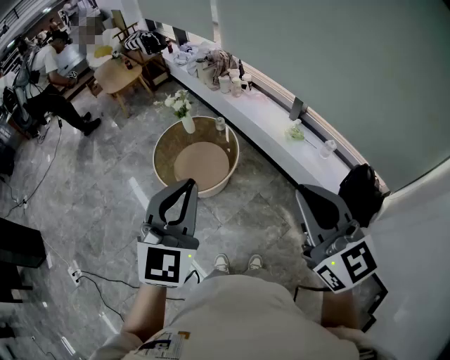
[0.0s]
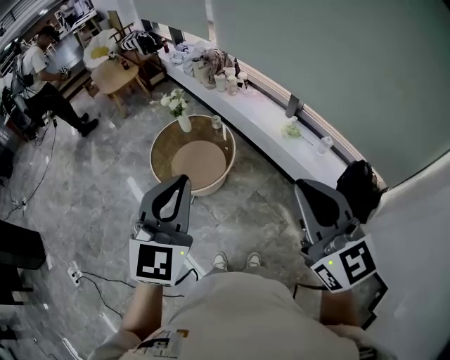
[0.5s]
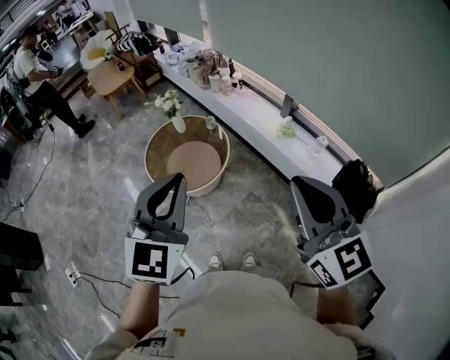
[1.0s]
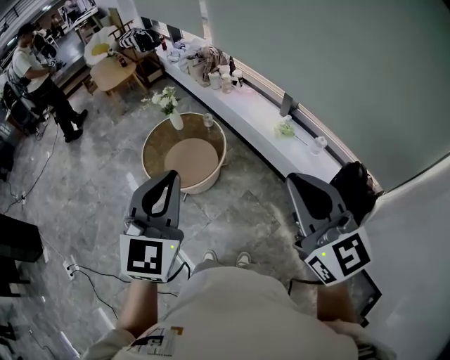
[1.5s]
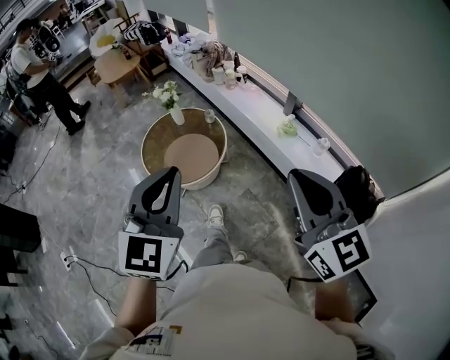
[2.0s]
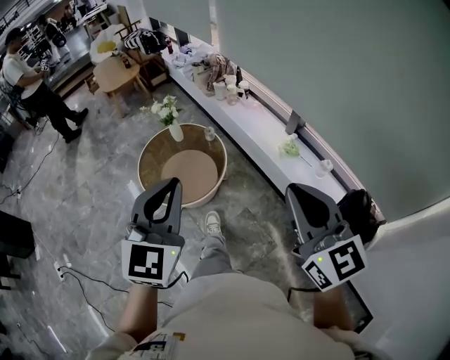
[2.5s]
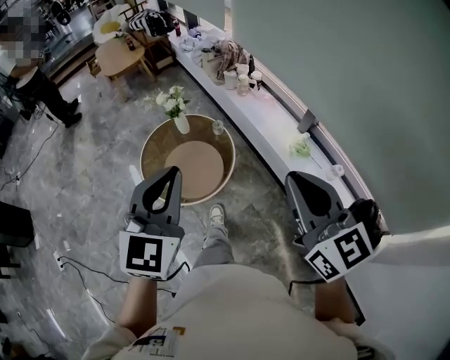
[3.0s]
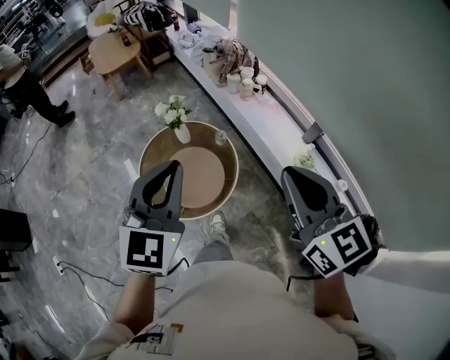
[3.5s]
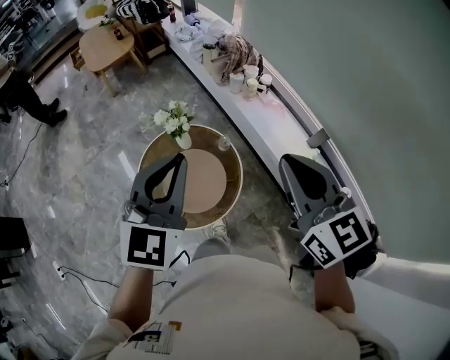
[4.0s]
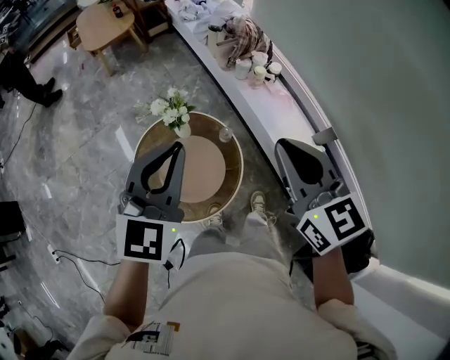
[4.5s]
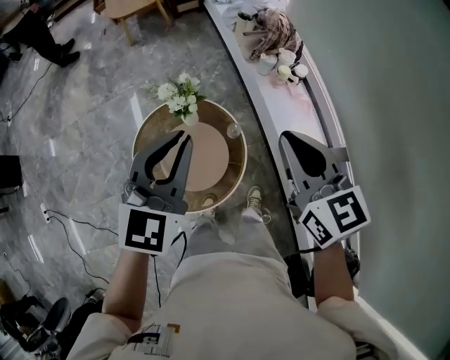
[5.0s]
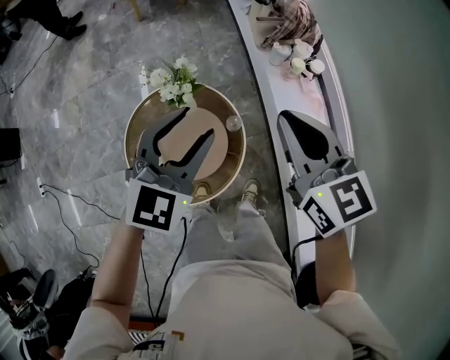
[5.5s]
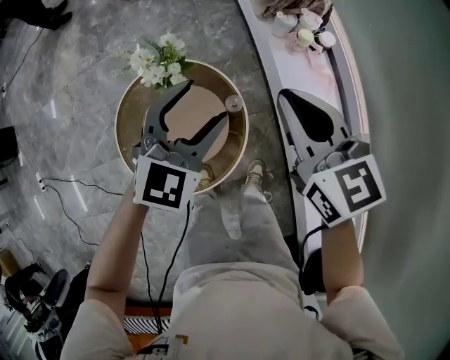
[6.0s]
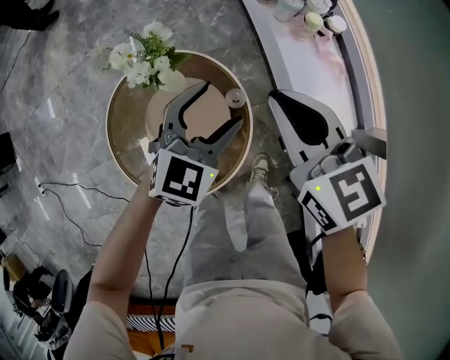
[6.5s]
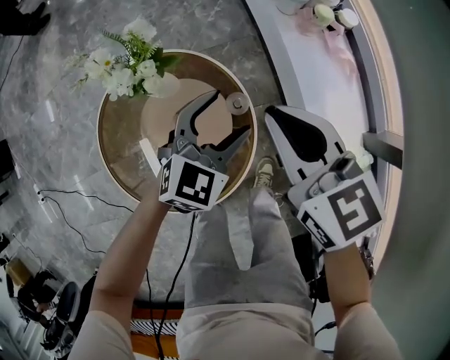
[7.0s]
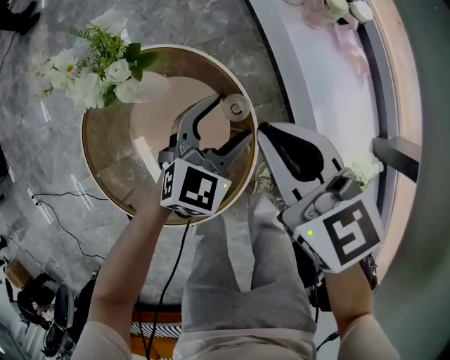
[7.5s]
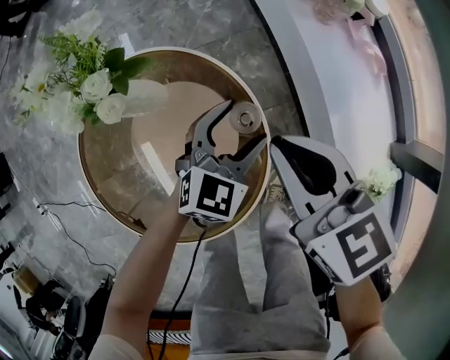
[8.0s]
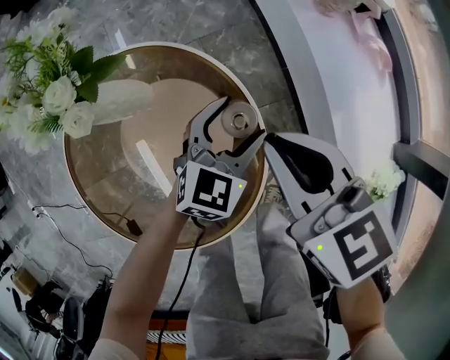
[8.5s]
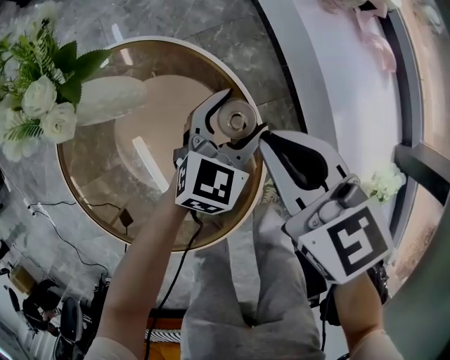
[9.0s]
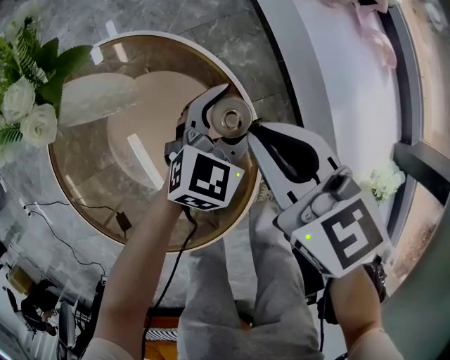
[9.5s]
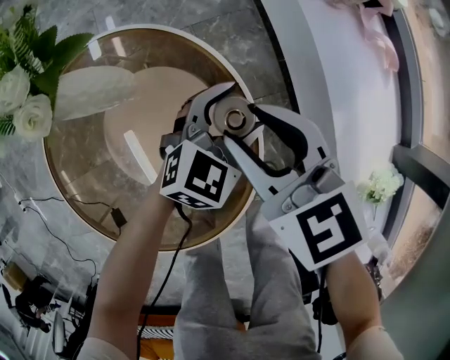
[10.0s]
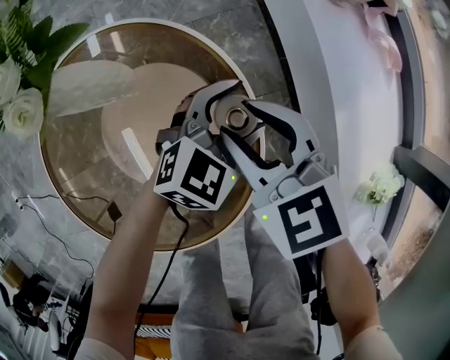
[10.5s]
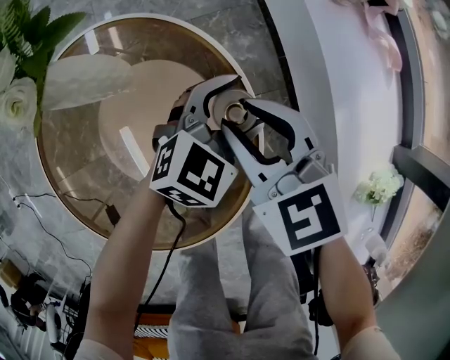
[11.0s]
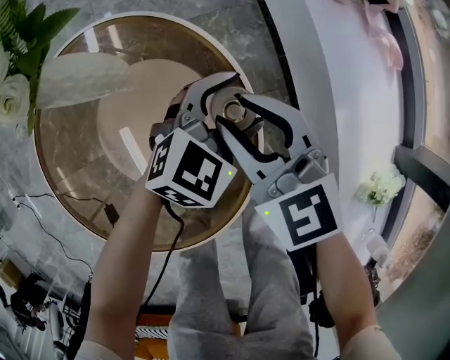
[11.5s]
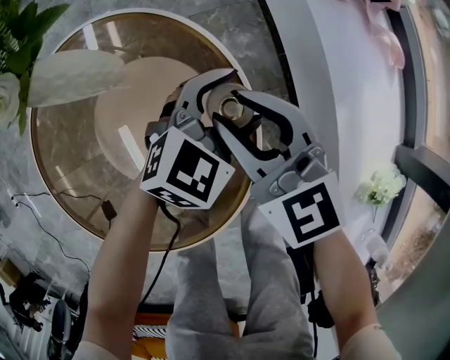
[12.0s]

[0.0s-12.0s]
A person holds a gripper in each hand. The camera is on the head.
0.0s to 2.0s: Both grippers move to the right, approximately 10 cm.
2.0s to 4.0s: The pair of grippers is taken forward, about 50 cm.
4.0s to 6.0s: The left gripper shifts approximately 35 cm downward, forward and to the right, and opens up, while the right gripper is displaced forward and downward by about 35 cm, and turns by some 20 degrees.
6.0s to 8.0s: The two grippers go some 35 cm downward.
8.0s to 10.0s: Both grippers move downward, some 10 cm. The right gripper opens.
10.0s to 12.0s: The grippers stay close to where they were, moving slightly.

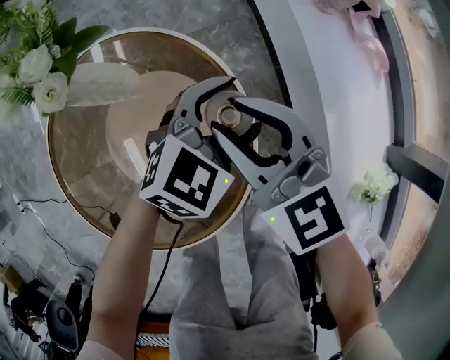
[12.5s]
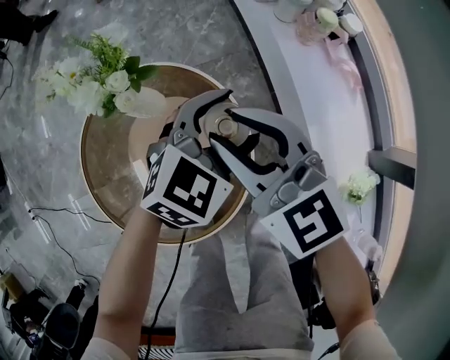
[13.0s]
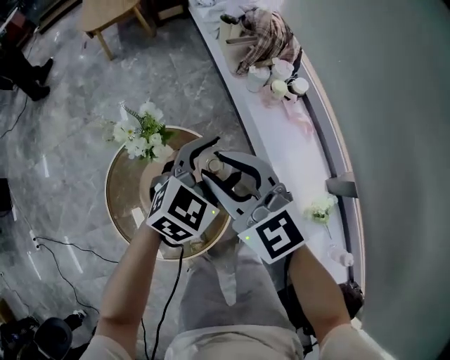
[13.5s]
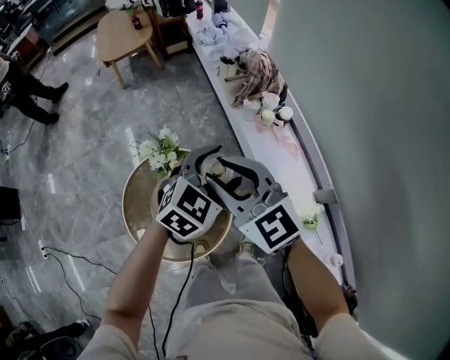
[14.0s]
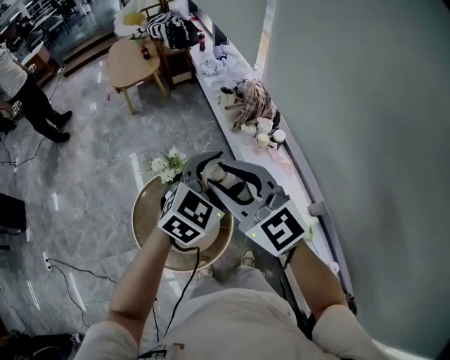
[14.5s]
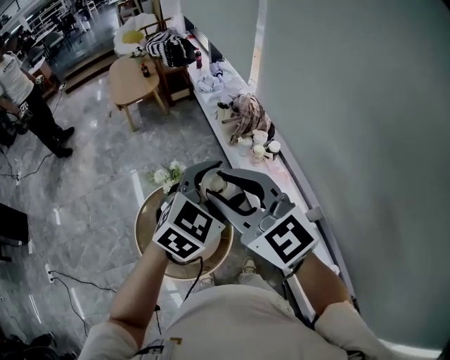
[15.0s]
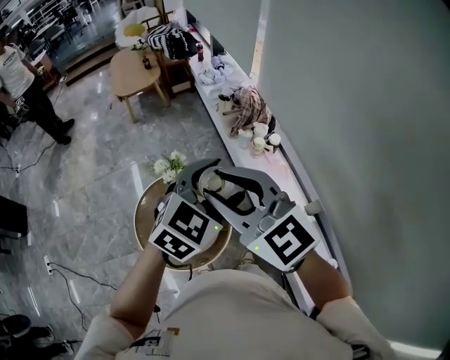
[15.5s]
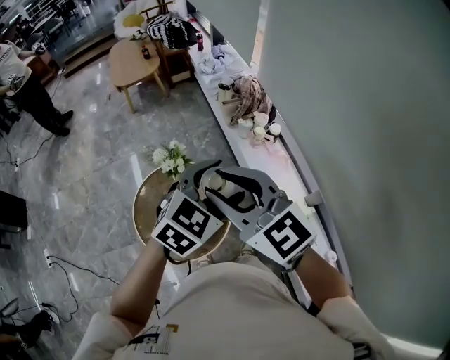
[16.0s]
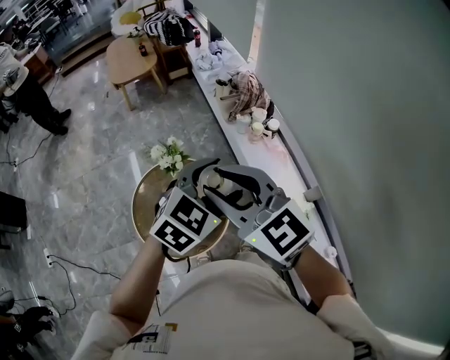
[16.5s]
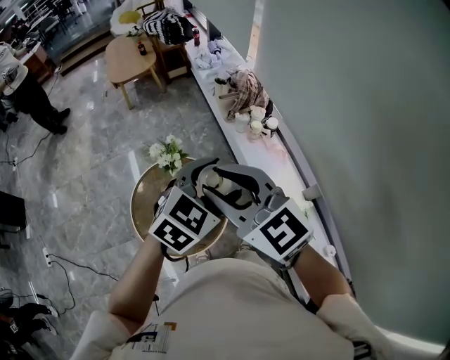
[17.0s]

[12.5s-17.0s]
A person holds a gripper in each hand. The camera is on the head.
12.5s to 14.5s: Both grippers move upward, approximately 60 cm. The right gripper turns by some 20 degrees.
14.5s to 17.0s: The two grippers go approximately 10 cm backward.

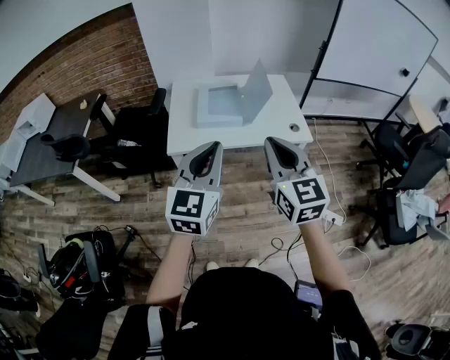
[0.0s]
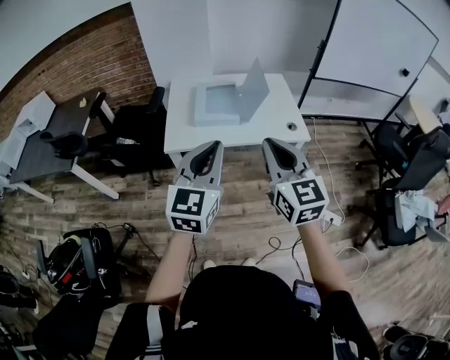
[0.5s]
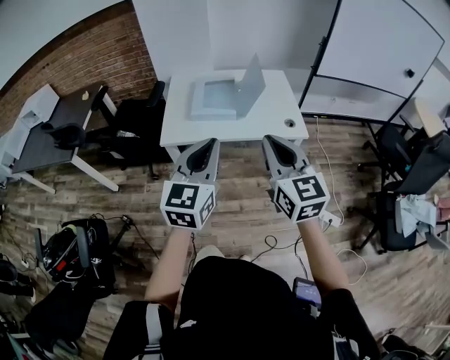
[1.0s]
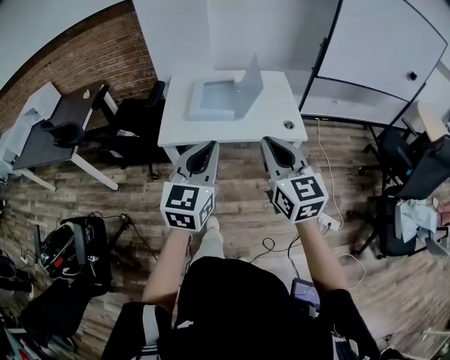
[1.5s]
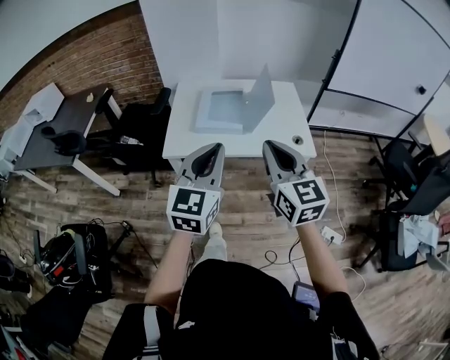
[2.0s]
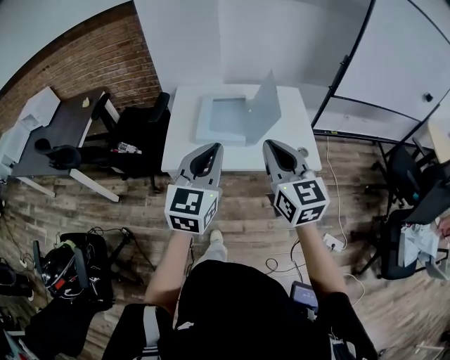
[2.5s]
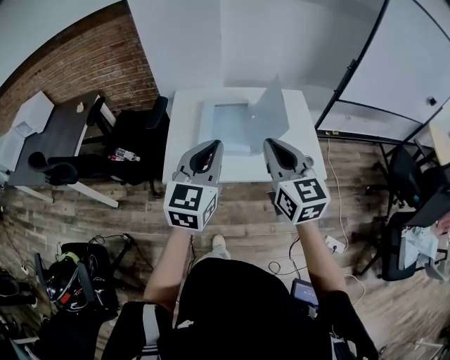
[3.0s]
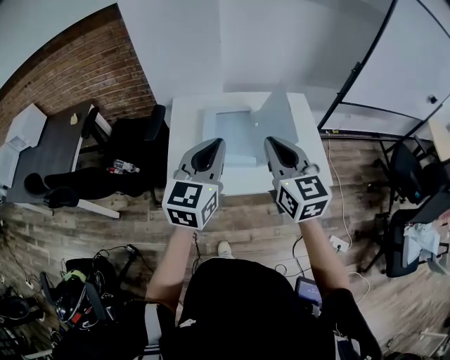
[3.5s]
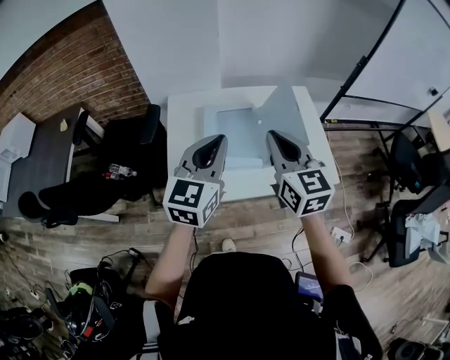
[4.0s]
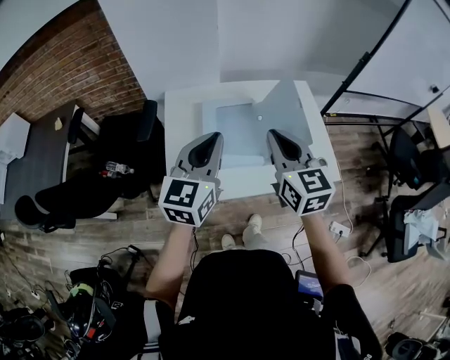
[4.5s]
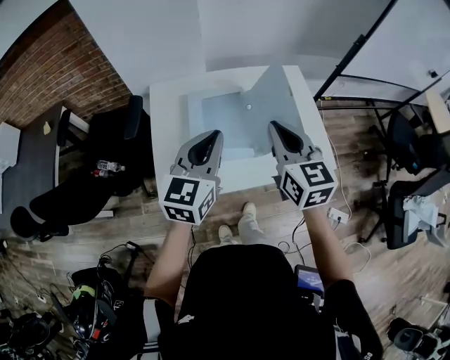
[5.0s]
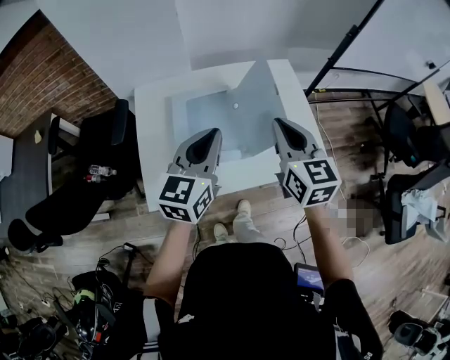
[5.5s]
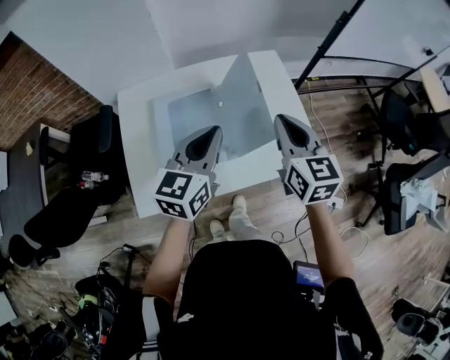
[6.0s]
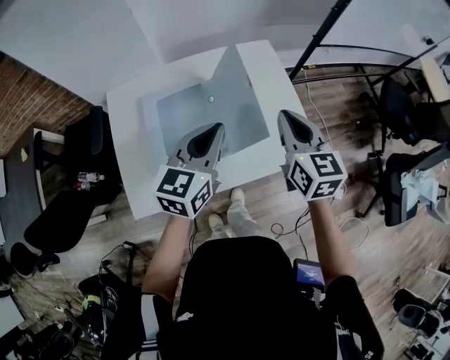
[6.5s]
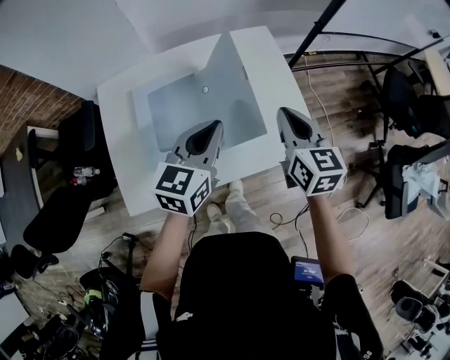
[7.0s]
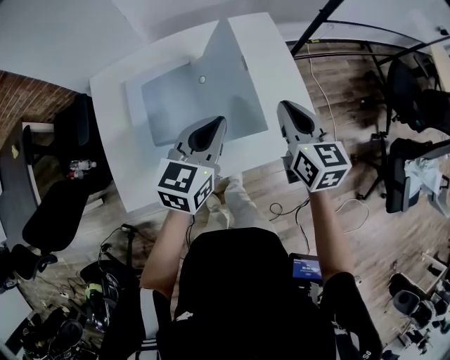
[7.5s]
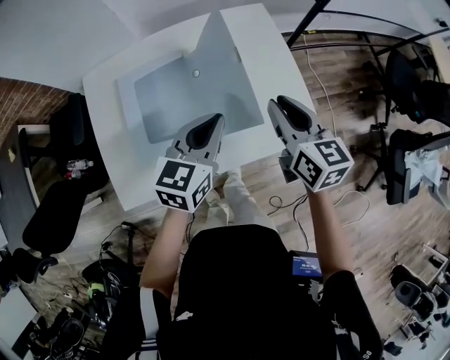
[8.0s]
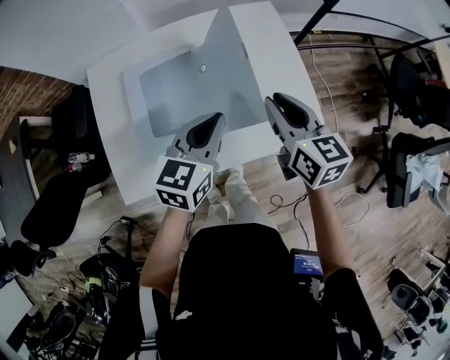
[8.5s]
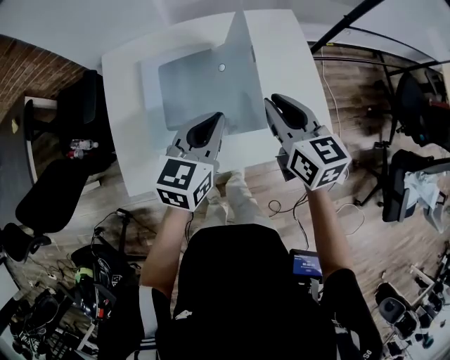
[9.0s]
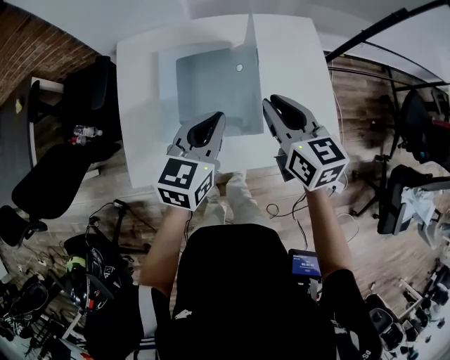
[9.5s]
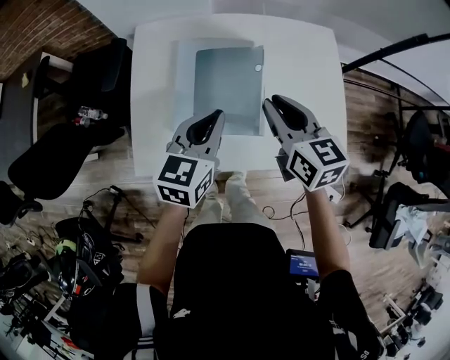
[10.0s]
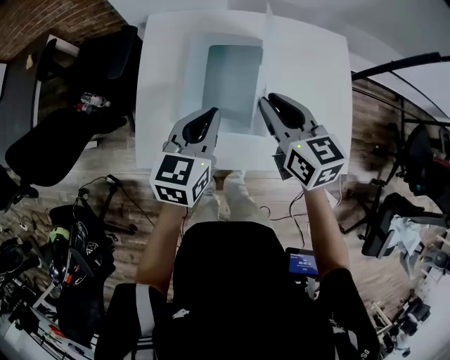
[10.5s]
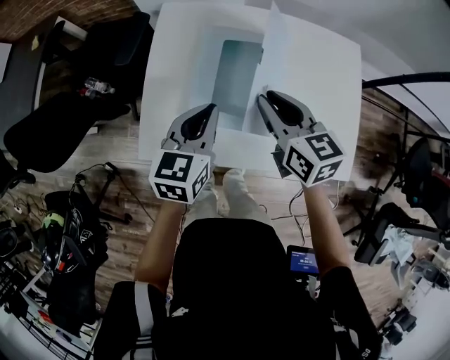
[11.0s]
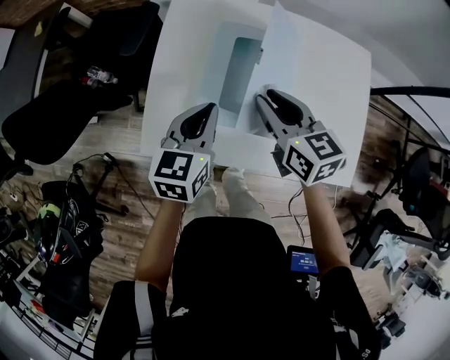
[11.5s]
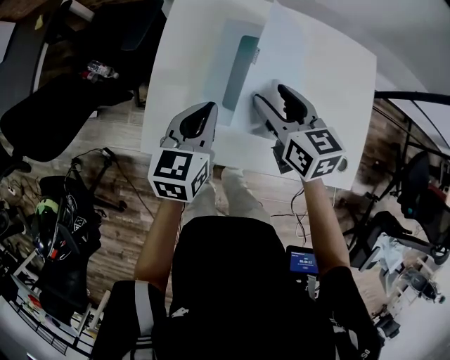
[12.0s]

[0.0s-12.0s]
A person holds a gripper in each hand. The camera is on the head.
0.0s to 2.0s: The right gripper goes approximately 5 cm forward. Meanwhile the left gripper heads forward and to the right, covering approximately 10 cm.
2.0s to 4.0s: The grippers both shift forward by approximately 30 cm.
4.0s to 6.0s: The grippers both shift to the right, forward and downward by roughly 20 cm.
6.0s to 8.0s: The left gripper goes about 10 cm downward and to the right, while the right gripper shifts about 10 cm downward.
8.0s to 10.0s: The two grippers go about 15 cm to the left.
10.0s to 12.0s: Both grippers move to the left and downward, some 10 cm. The right gripper opens its fingers.
